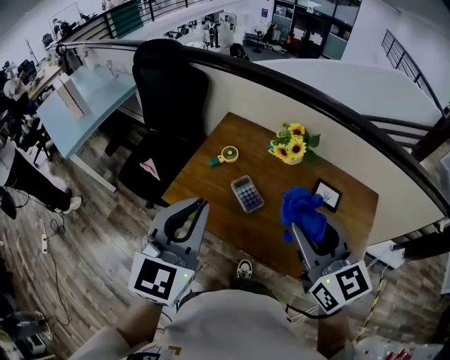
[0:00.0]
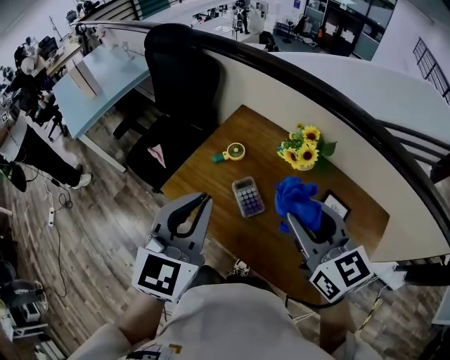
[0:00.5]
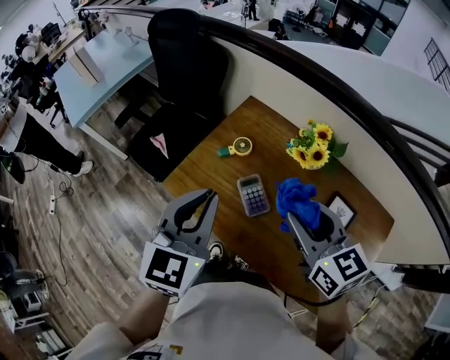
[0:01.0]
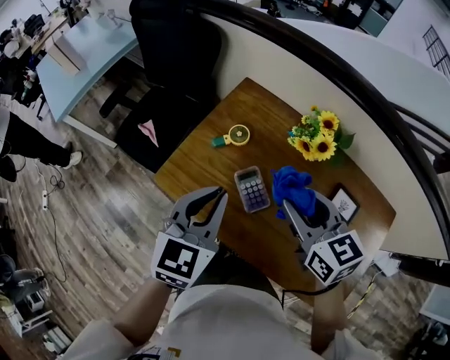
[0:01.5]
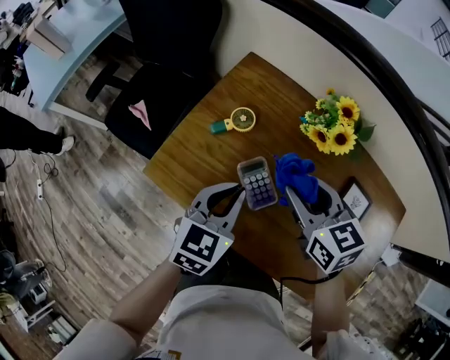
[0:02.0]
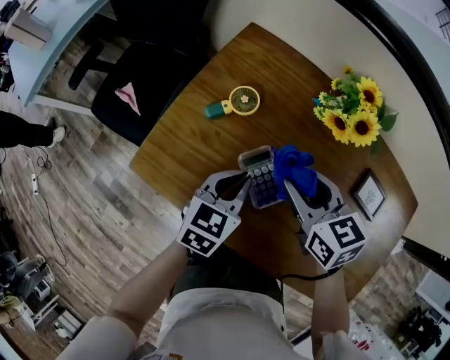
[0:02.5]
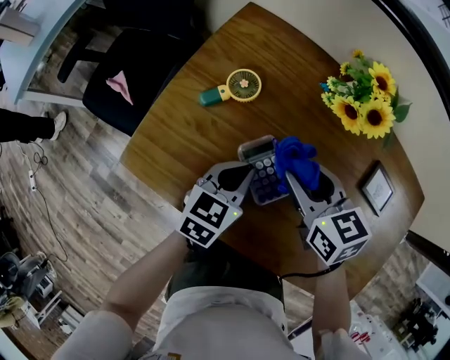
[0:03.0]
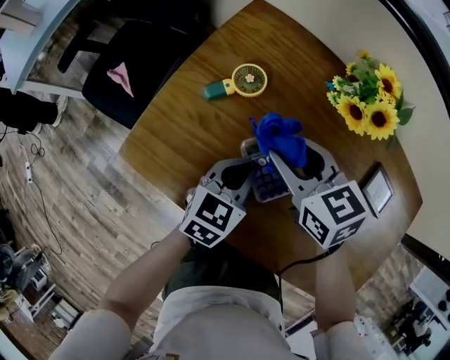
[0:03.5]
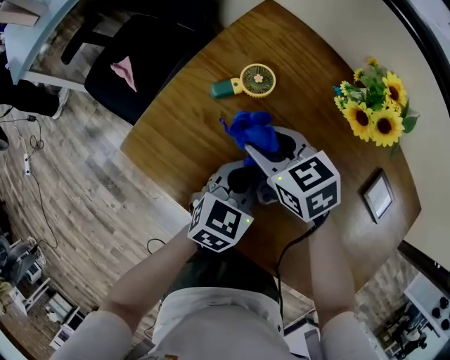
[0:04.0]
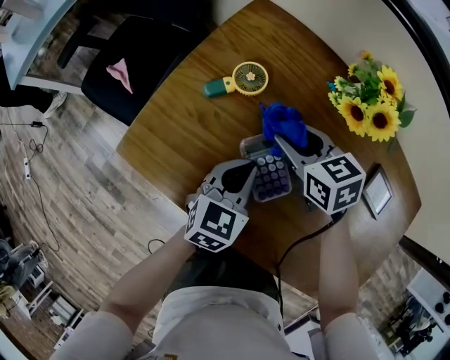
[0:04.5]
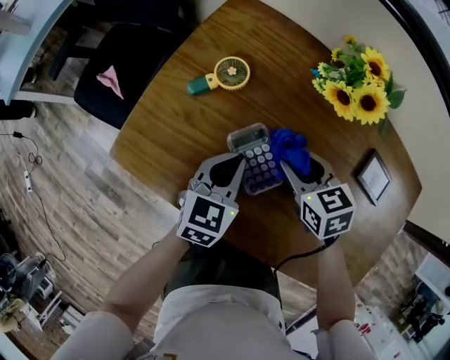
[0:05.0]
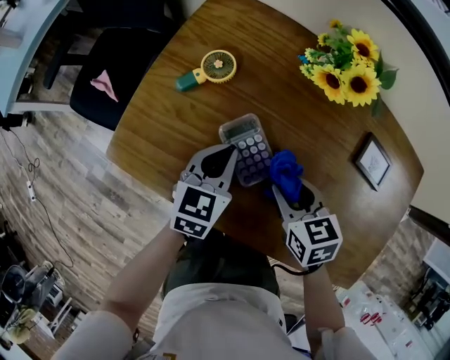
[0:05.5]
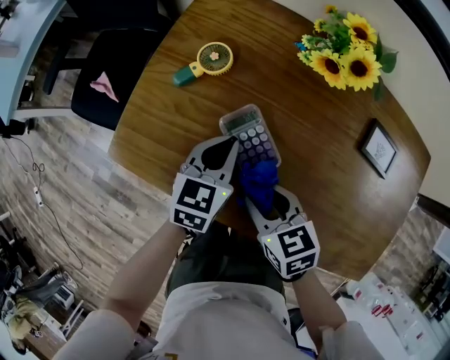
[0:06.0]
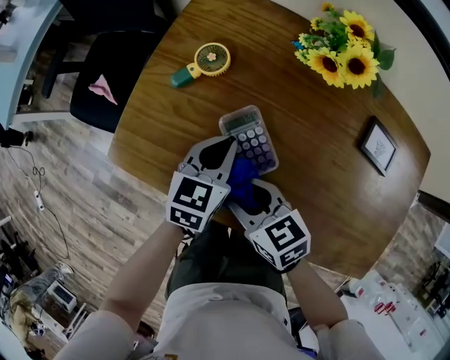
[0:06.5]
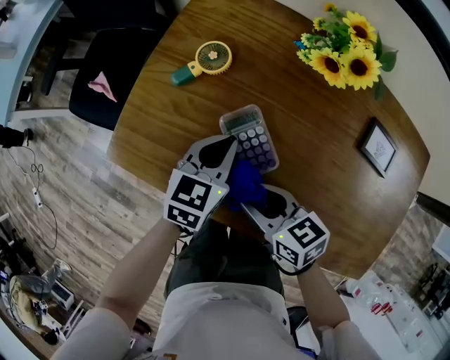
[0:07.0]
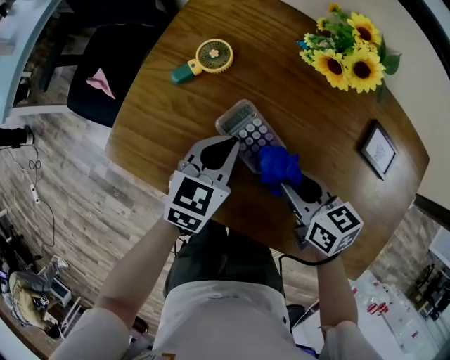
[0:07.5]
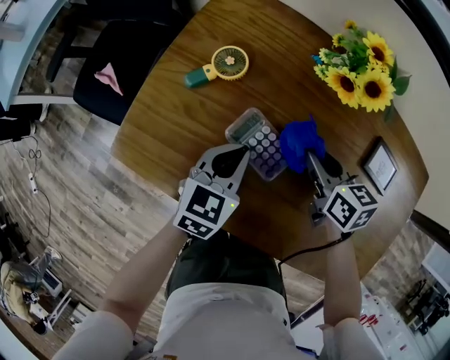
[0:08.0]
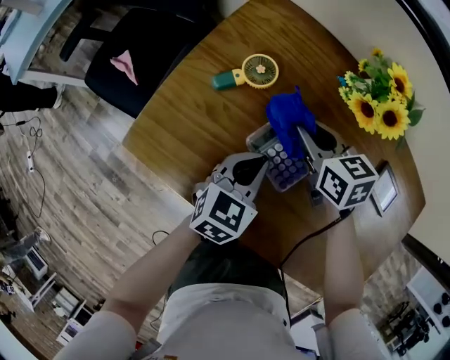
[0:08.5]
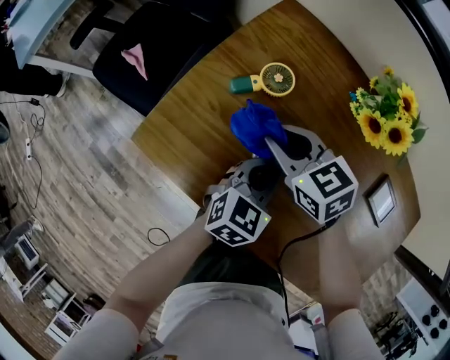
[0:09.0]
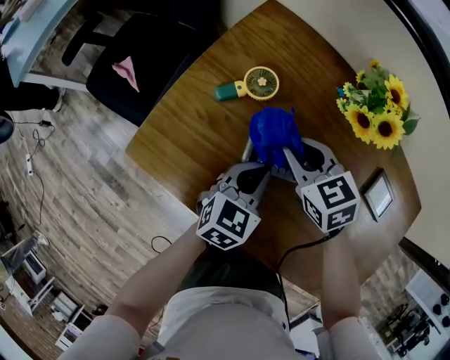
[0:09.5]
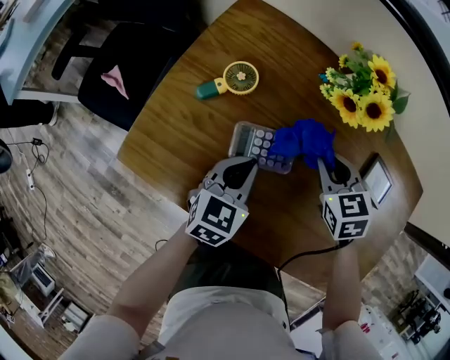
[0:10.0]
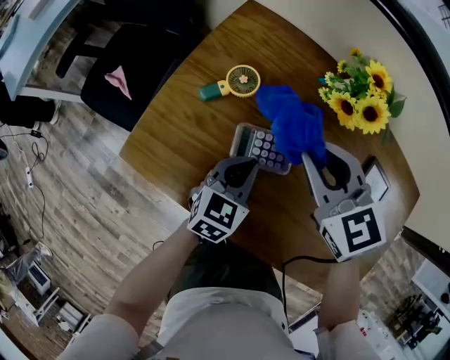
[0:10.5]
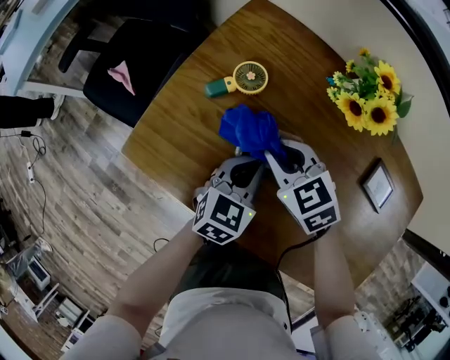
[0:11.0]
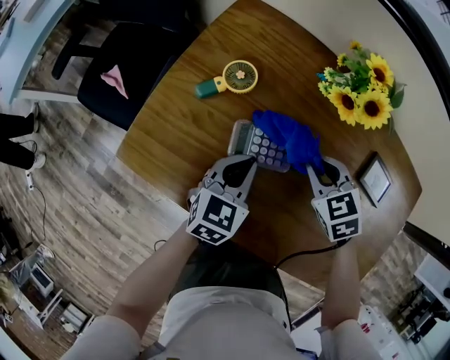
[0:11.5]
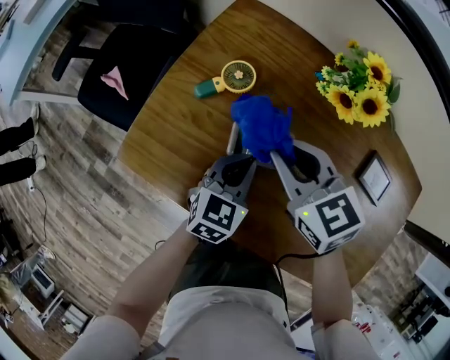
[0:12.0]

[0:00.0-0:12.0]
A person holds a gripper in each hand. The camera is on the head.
0:00.0 to 0:02.0: The grippers both shift downward and forward by some 35 cm. The left gripper turns by about 30 degrees. The right gripper turns by approximately 30 degrees.
0:02.0 to 0:04.0: The left gripper shifts approximately 15 cm downward; the right gripper goes roughly 20 cm downward and to the left, and changes its angle by some 20 degrees.
0:04.0 to 0:06.0: The right gripper is displaced backward by approximately 15 cm, and turns by about 20 degrees.
0:06.0 to 0:08.0: The right gripper is displaced forward and to the right by about 15 cm.
0:08.0 to 0:10.0: The right gripper travels to the left and back again, roughly 20 cm each way, and swivels roughly 30 degrees.
0:10.0 to 0:12.0: The right gripper moves left and right over some 15 cm, changing direction 2 times, and rotates roughly 20 degrees.

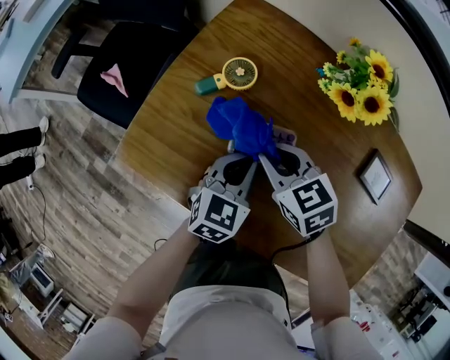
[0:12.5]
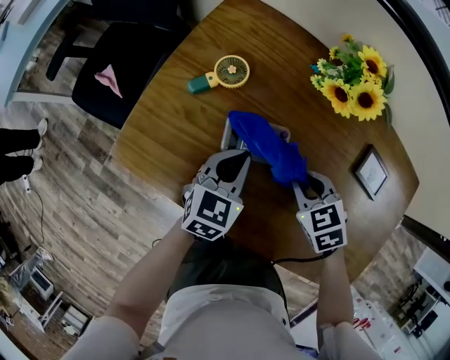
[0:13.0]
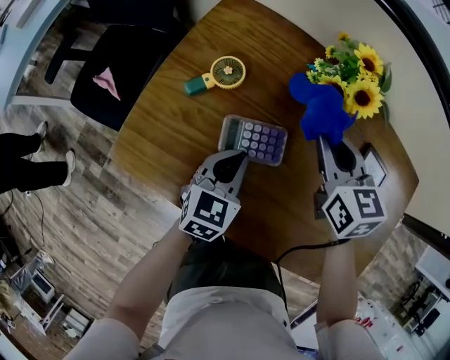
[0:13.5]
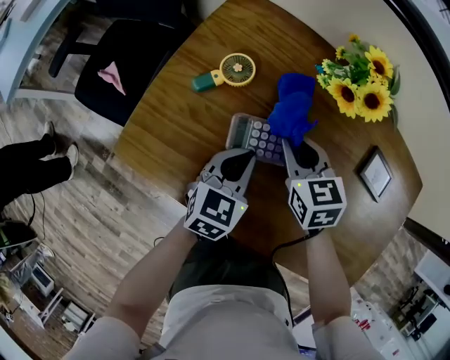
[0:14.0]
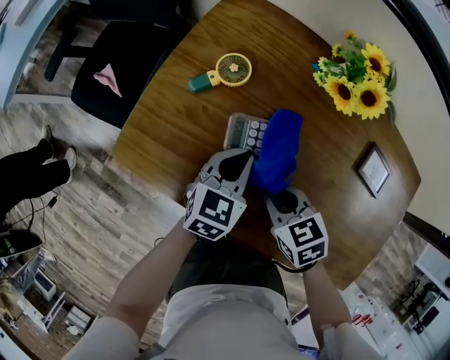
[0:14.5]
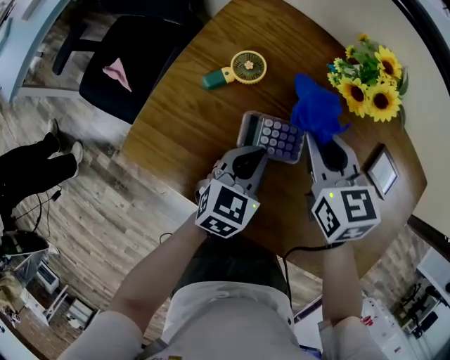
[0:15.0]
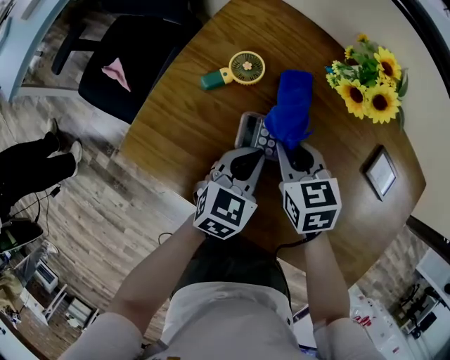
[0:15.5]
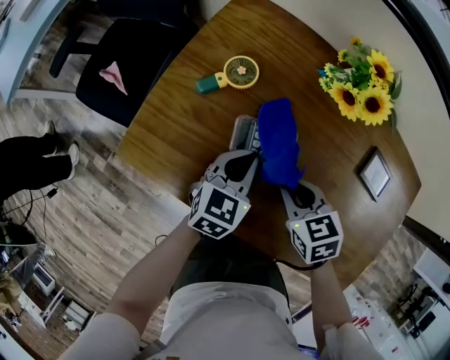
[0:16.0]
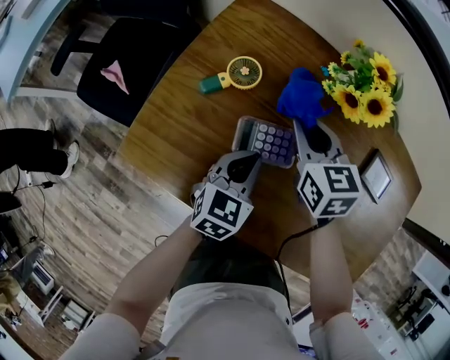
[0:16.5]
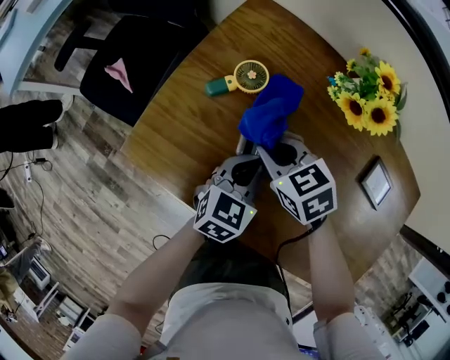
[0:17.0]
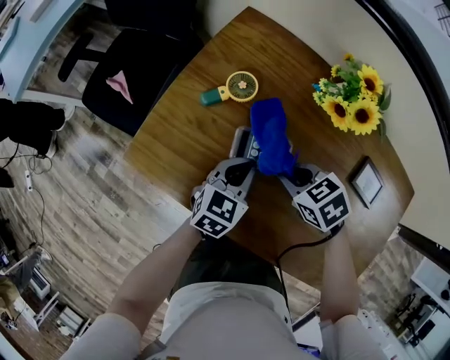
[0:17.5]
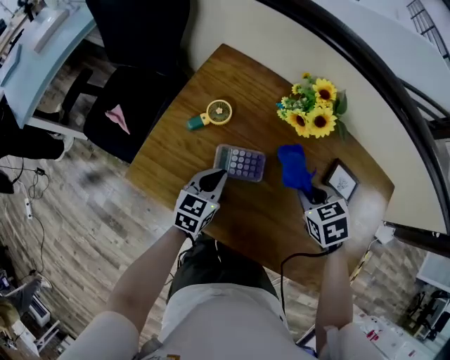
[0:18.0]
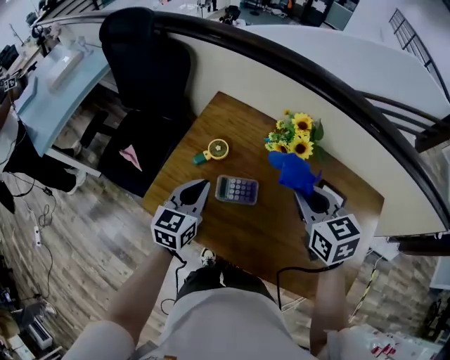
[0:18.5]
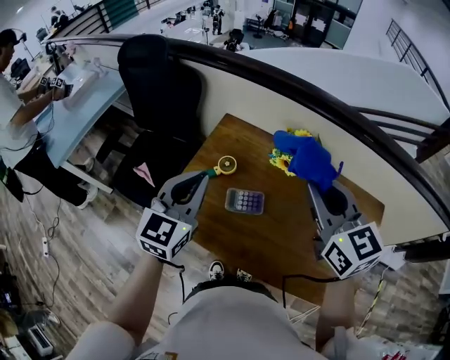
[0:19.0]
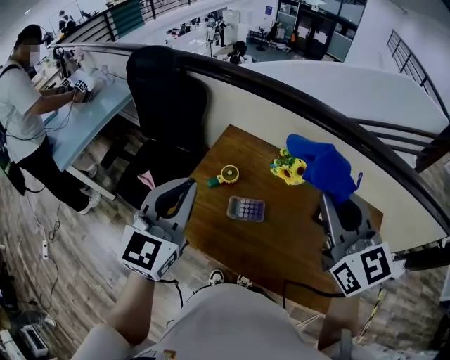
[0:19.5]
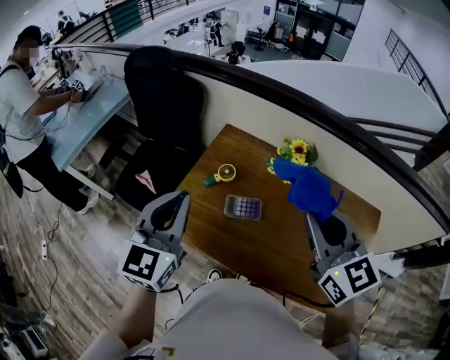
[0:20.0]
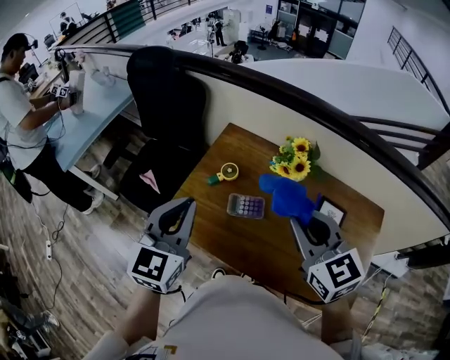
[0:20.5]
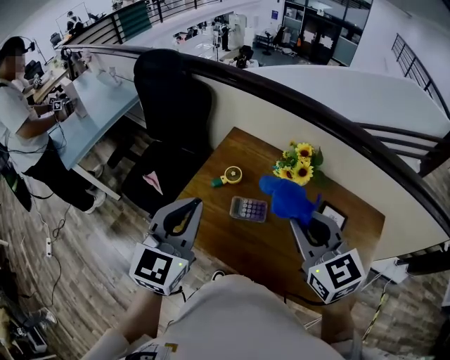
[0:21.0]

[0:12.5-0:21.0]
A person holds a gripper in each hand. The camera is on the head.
0:12.5 to 0:14.5: The right gripper swings forward and backward, some 15 cm each way, with 2 reversals.
0:14.5 to 0:16.5: The right gripper swings forward and backward, about 15 cm each way, with 2 reversals, and turns by roughly 30 degrees.
0:16.5 to 0:19.0: The two grippers go roughly 35 cm upward. The left gripper rotates some 30 degrees. The right gripper turns by roughly 20 degrees.
0:19.0 to 0:21.0: The left gripper goes some 10 cm backward and upward, while the right gripper is displaced backward by about 5 cm, and reaches roughly 5 cm upward, then returns.

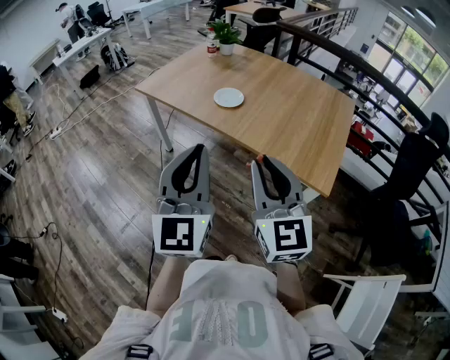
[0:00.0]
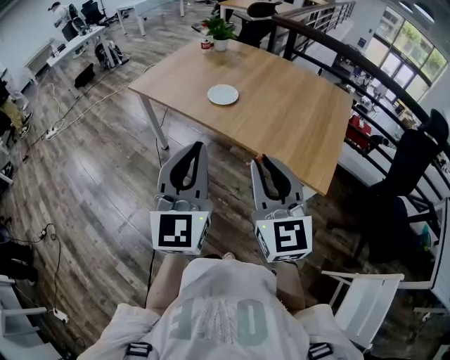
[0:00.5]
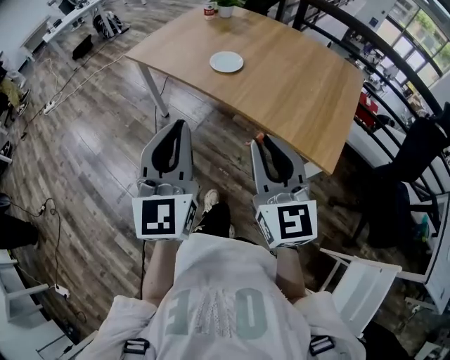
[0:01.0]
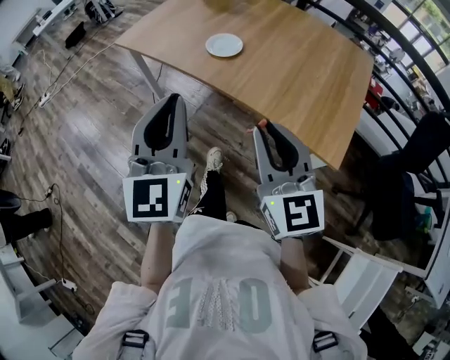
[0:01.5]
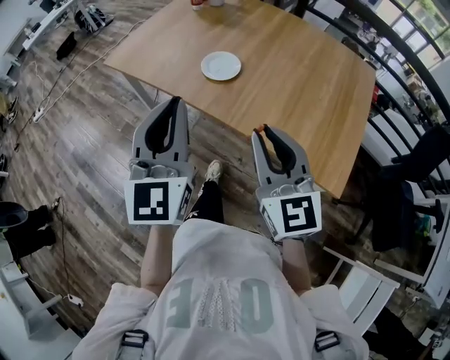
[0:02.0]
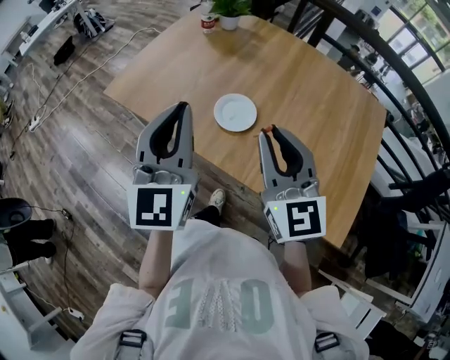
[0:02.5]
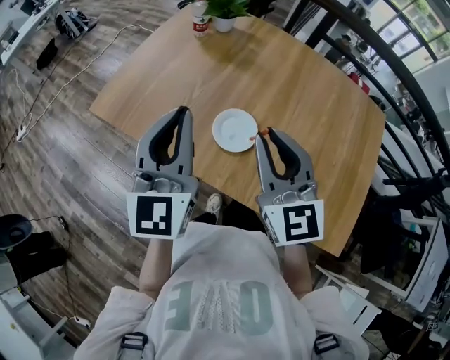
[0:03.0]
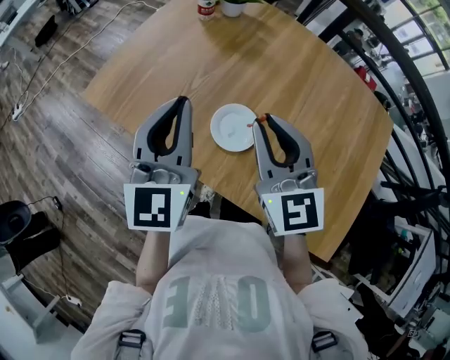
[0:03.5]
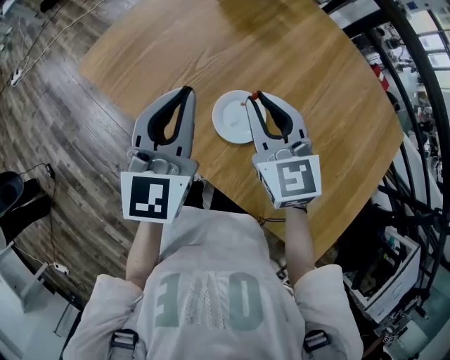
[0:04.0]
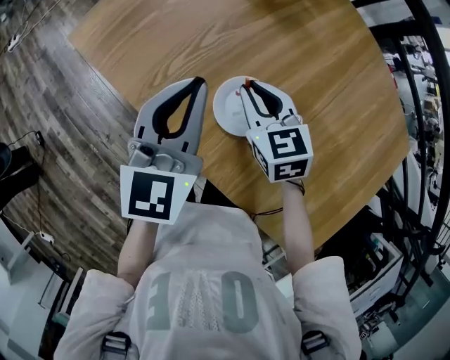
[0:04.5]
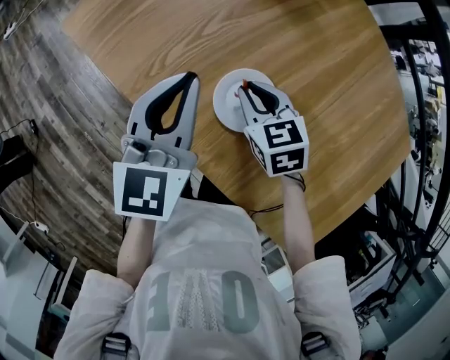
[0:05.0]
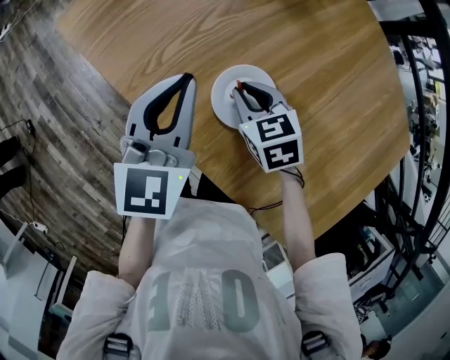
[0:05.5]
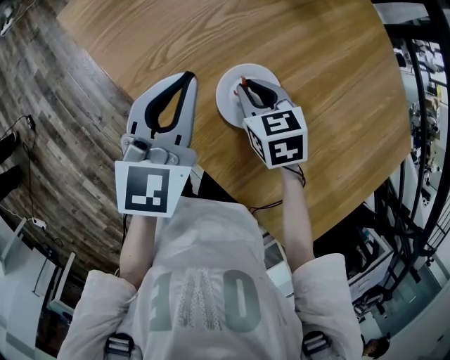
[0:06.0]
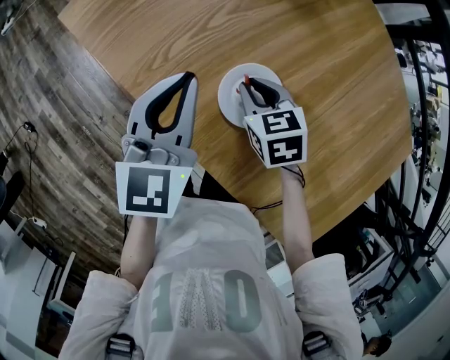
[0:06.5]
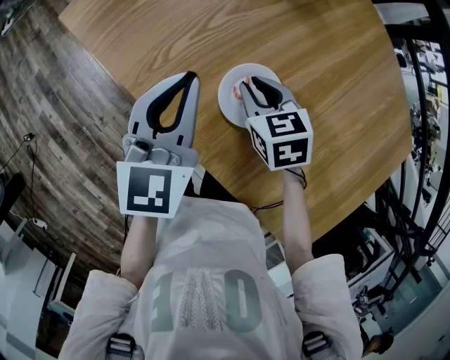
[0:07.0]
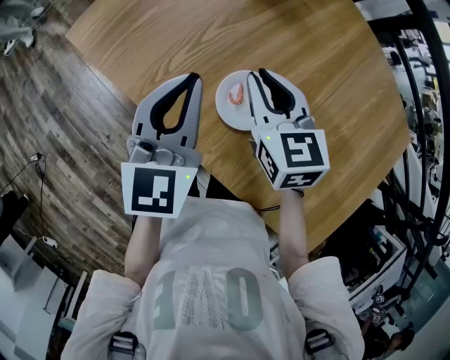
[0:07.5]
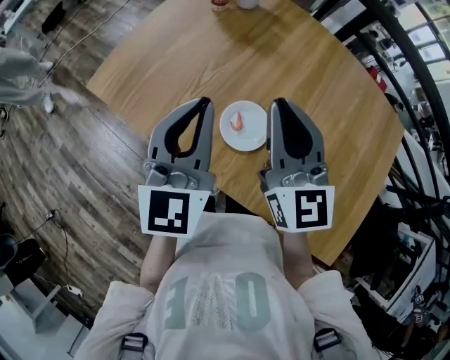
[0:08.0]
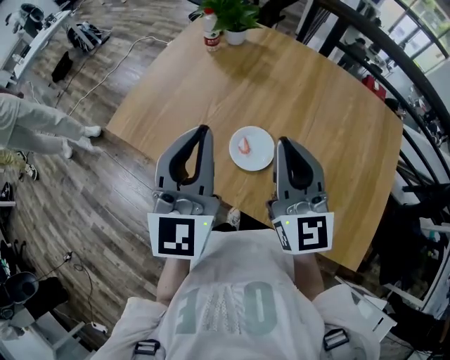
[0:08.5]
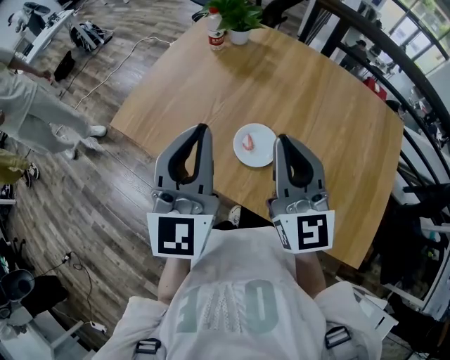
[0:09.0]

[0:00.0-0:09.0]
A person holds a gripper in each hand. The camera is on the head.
0:00.0 to 0:02.0: The two grippers go some 20 cm forward.
0:02.0 to 0:04.5: The right gripper shifts some 40 cm forward and downward, and tilts its fingers about 30 degrees downward; the left gripper heads forward, covering about 35 cm, and turns by about 20 degrees.
0:04.5 to 0:07.0: Both grippers move downward, approximately 5 cm.
0:07.0 to 0:09.0: The grippers both shift upward by approximately 25 cm. The right gripper tips its fingers upward by some 60 degrees. Meanwhile the left gripper rotates some 30 degrees.
